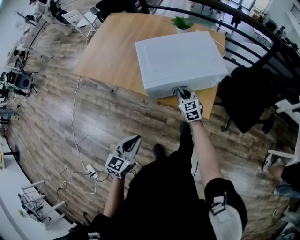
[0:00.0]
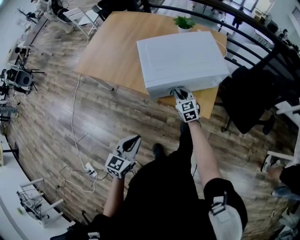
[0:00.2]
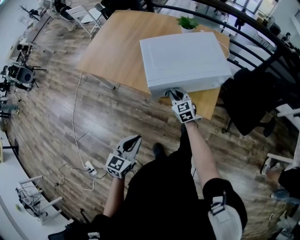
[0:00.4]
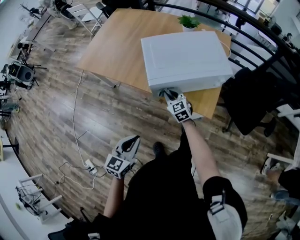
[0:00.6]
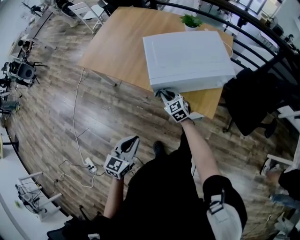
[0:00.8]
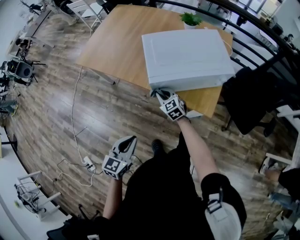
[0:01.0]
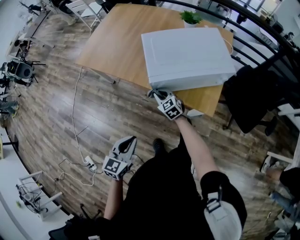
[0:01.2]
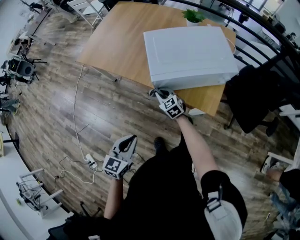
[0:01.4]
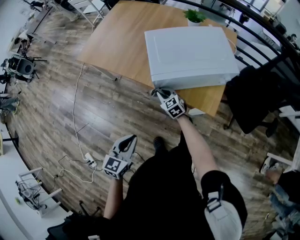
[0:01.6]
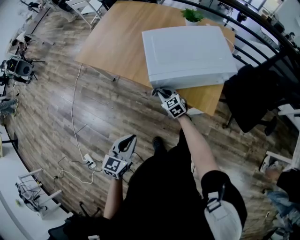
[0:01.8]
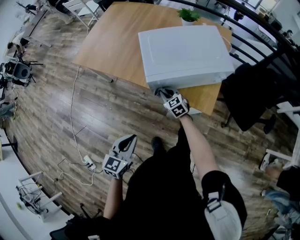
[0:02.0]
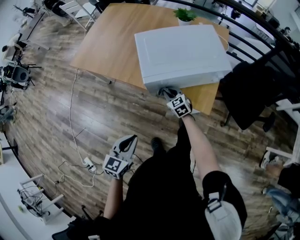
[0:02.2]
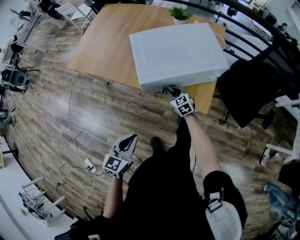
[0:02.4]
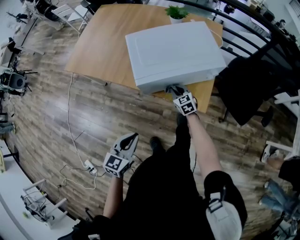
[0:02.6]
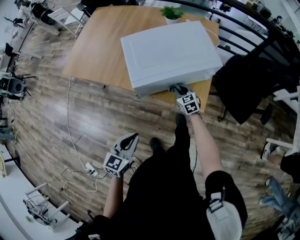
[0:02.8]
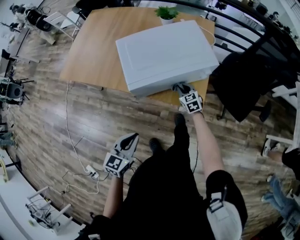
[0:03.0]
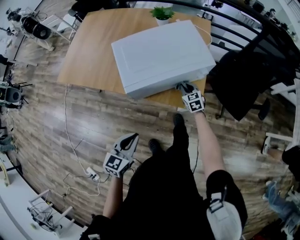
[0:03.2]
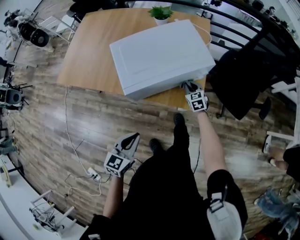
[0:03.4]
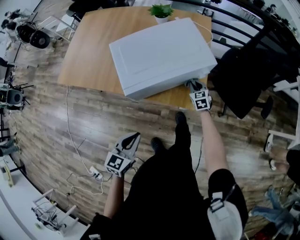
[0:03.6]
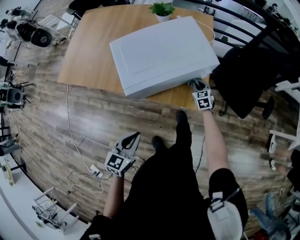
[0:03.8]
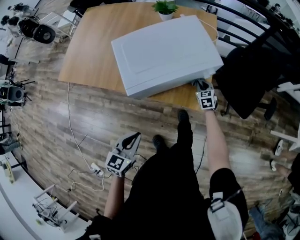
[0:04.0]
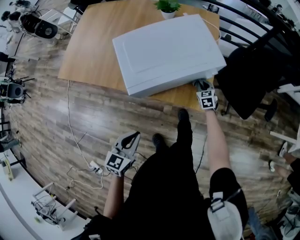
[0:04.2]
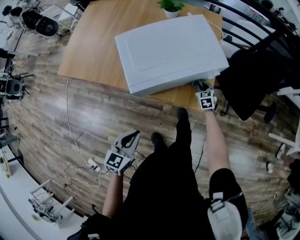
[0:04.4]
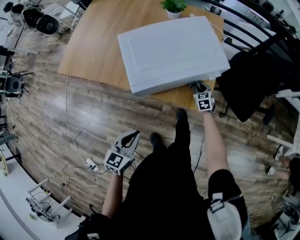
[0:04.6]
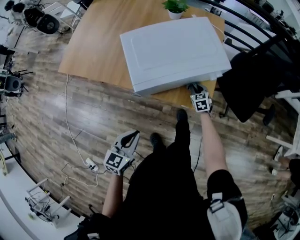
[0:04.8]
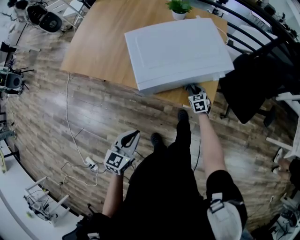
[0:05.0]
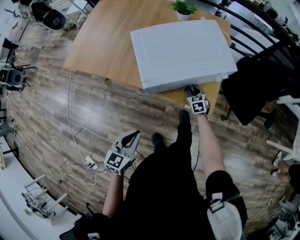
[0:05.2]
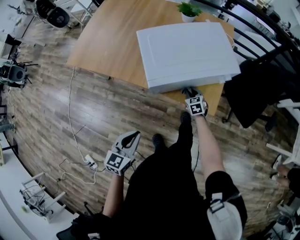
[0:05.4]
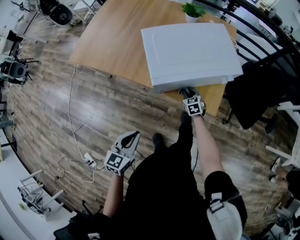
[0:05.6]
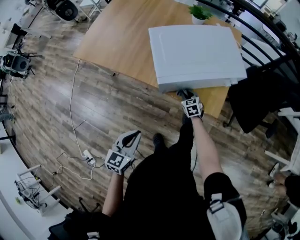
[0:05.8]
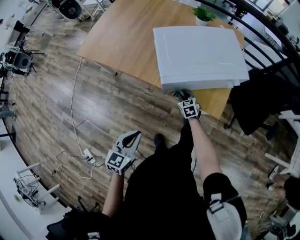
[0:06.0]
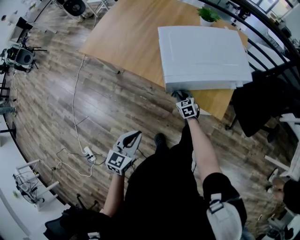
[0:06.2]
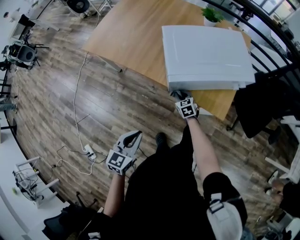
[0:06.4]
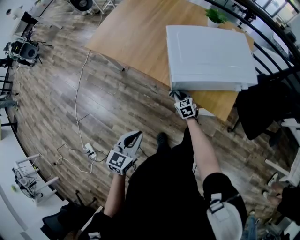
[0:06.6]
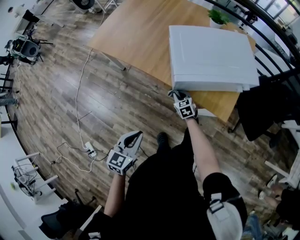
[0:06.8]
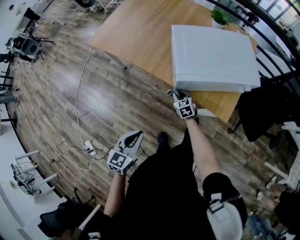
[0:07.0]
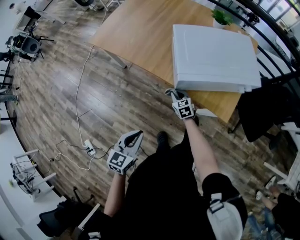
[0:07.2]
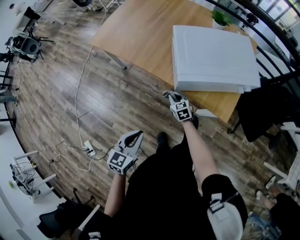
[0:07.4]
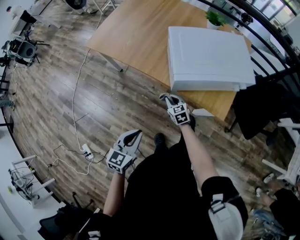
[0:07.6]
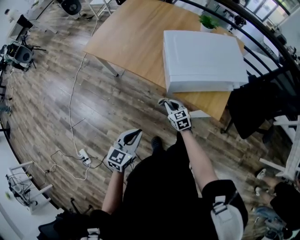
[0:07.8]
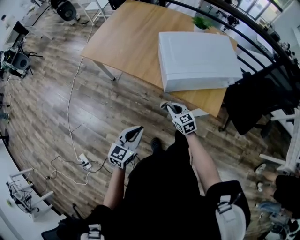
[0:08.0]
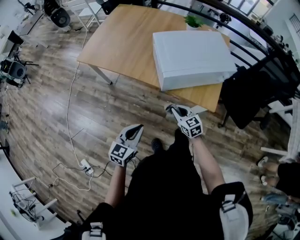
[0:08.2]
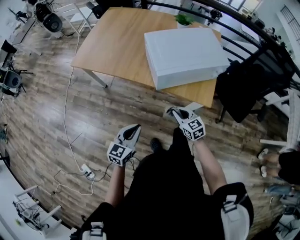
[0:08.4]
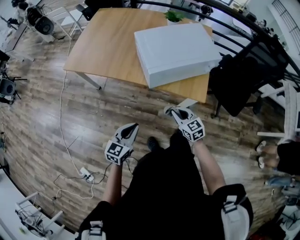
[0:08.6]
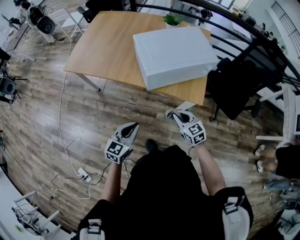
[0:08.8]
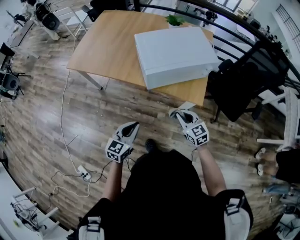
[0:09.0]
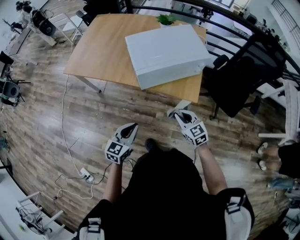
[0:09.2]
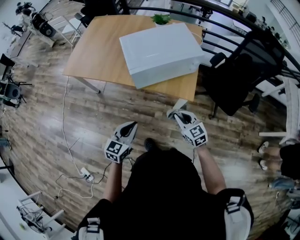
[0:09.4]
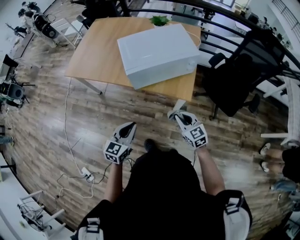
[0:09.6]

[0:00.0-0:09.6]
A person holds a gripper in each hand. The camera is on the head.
0:00.0 to 0:01.6: The right gripper is displaced to the left by roughly 15 cm, and swivels about 20 degrees.
0:01.6 to 0:03.2: The right gripper moves to the right, some 25 cm, and changes its angle by roughly 30 degrees, while the left gripper is displaced to the right and forward by approximately 10 cm.
0:03.2 to 0:04.8: The right gripper shifts approximately 5 cm downward, and moves approximately 10 cm to the right and comes back.
0:04.8 to 0:06.4: The right gripper heads to the left, covering some 25 cm. The left gripper heads to the left and backward, covering roughly 10 cm.
0:06.4 to 0:08.0: The right gripper shifts some 15 cm upward and backward.
0:08.0 to 0:09.6: The left gripper goes about 15 cm to the right; the right gripper heads to the right, backward and upward, covering approximately 30 cm.

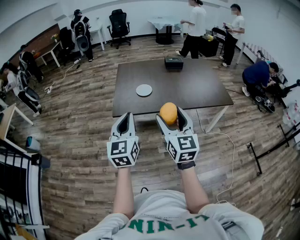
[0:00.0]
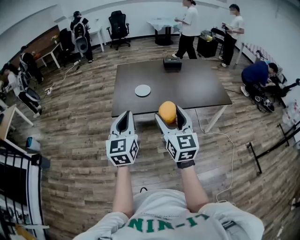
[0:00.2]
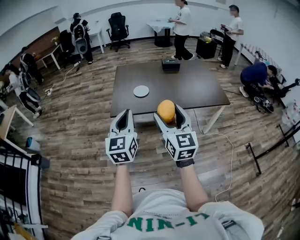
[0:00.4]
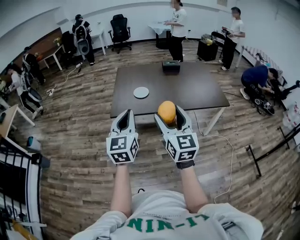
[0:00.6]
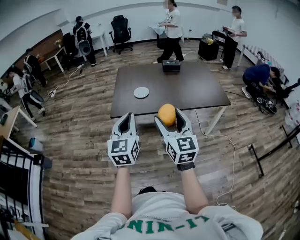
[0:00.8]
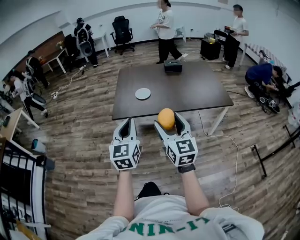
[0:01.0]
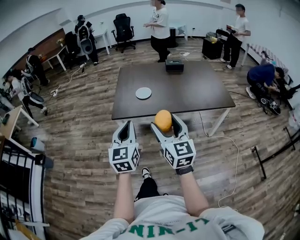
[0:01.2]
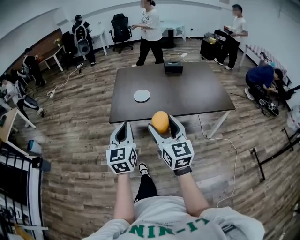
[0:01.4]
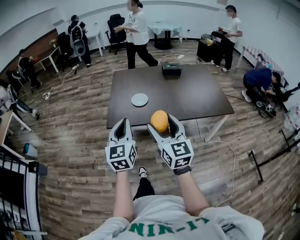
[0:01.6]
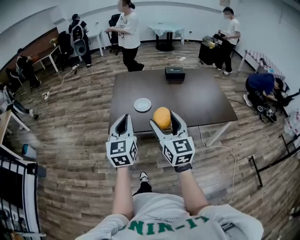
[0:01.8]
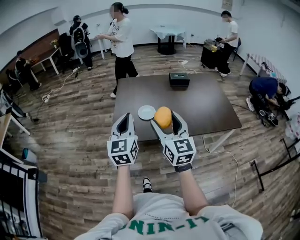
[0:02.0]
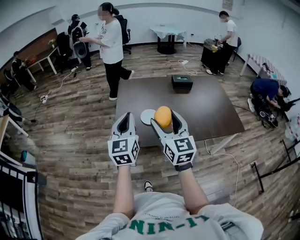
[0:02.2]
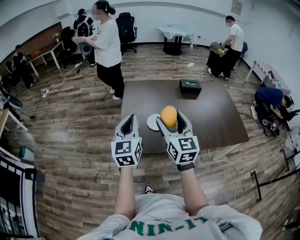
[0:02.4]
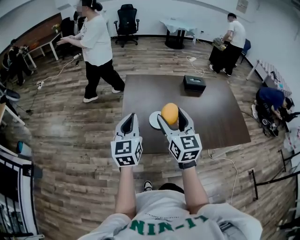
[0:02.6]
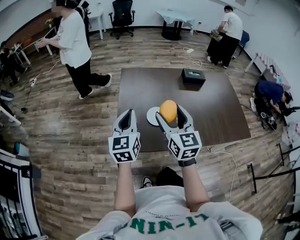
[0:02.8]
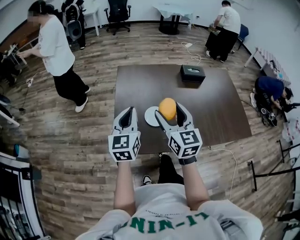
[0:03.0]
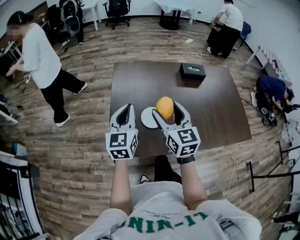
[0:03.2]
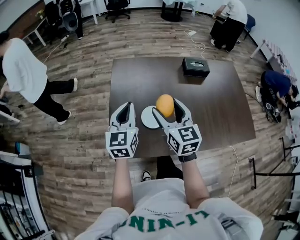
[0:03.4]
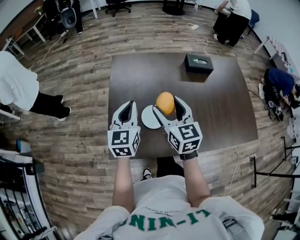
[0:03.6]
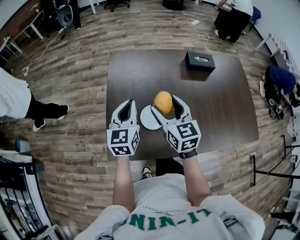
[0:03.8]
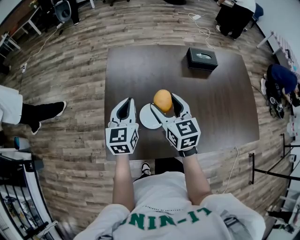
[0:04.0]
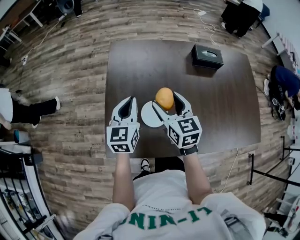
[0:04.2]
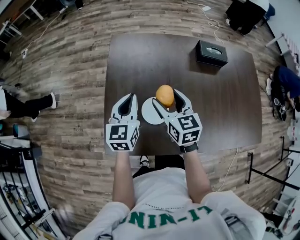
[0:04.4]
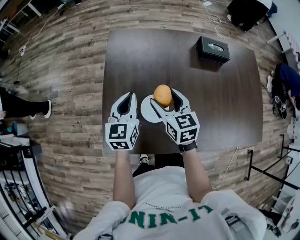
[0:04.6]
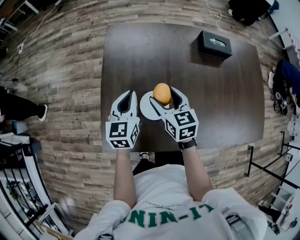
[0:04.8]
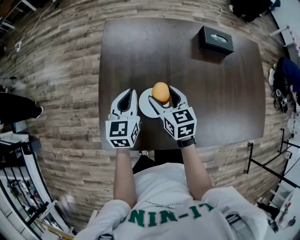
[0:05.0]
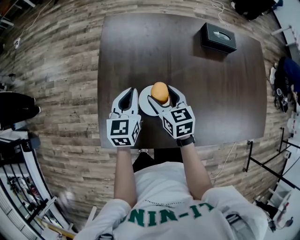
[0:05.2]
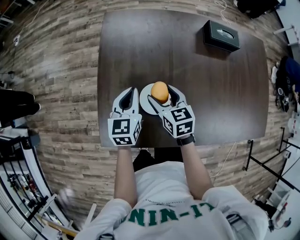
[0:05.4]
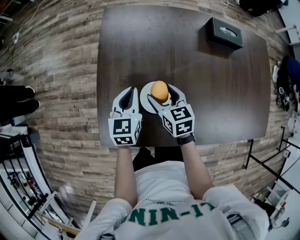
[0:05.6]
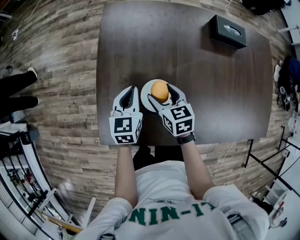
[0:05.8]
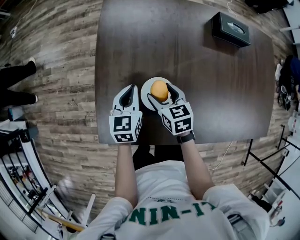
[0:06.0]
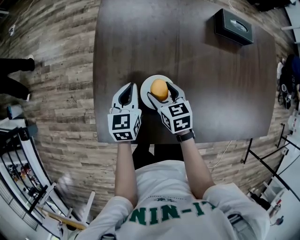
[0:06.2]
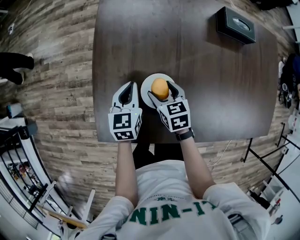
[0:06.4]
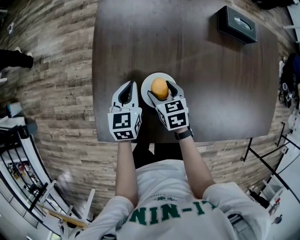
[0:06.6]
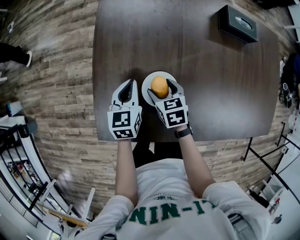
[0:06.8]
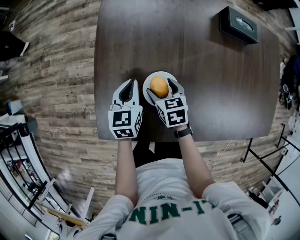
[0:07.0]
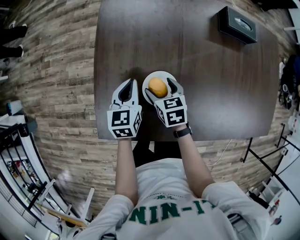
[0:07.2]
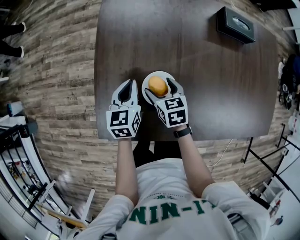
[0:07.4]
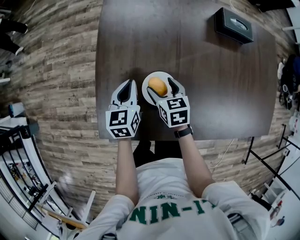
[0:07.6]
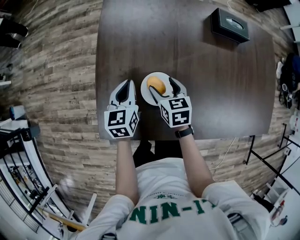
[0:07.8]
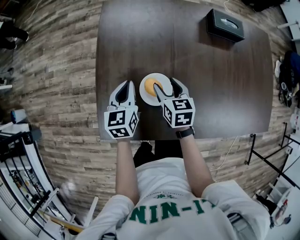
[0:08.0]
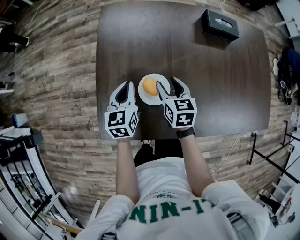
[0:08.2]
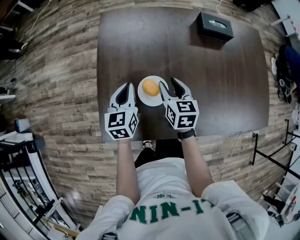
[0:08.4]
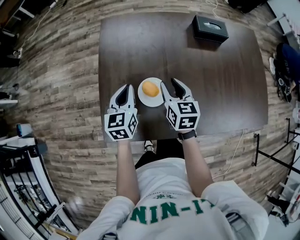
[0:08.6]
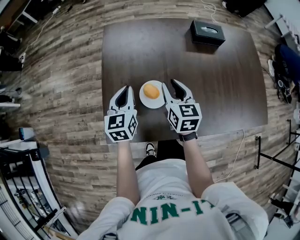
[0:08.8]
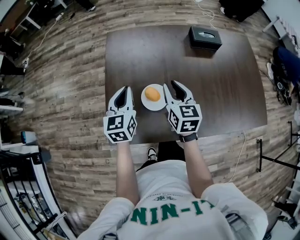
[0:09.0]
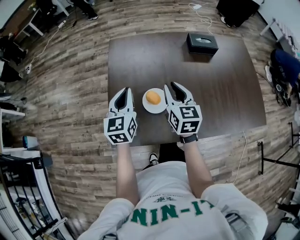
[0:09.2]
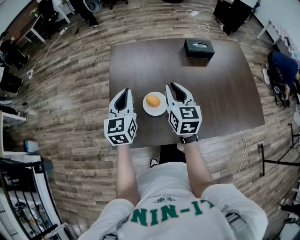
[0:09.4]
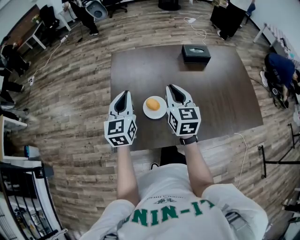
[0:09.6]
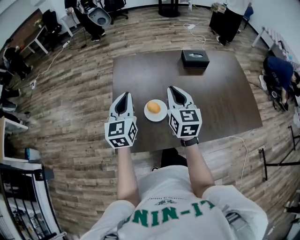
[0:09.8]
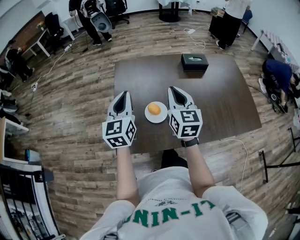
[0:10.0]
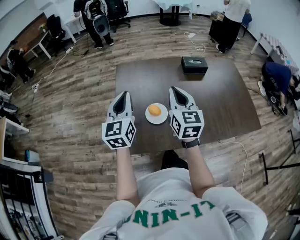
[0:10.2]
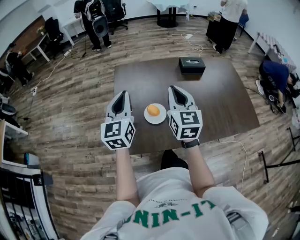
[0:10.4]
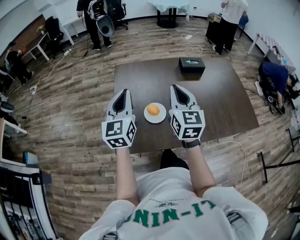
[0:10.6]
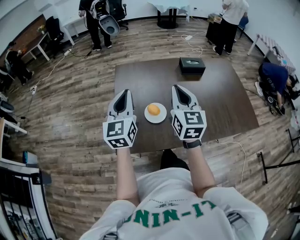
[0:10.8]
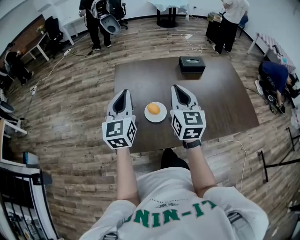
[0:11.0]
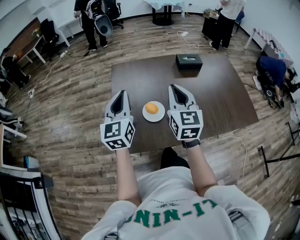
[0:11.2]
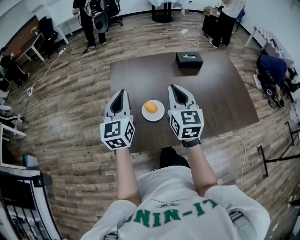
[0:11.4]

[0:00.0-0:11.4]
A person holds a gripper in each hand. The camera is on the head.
0:00.0 to 0:01.4: The left gripper shifts by about 5 cm.
0:01.4 to 0:02.8: The pair of grippers is taken forward, some 40 cm.
0:02.8 to 0:04.2: The left gripper moves forward, downward and to the right, about 30 cm. Meanwhile the right gripper is displaced forward and downward by approximately 30 cm, and swivels approximately 20 degrees.
0:04.2 to 0:05.6: Both grippers move downward, approximately 15 cm.
0:05.6 to 0:07.2: Both grippers travel together downward, about 10 cm.
0:07.2 to 0:08.6: The right gripper heads upward and to the right, covering about 20 cm, changes its angle by approximately 30 degrees, and closes up. Meanwhile the left gripper goes some 10 cm upward.
0:08.6 to 0:10.0: Both grippers travel together upward and backward, approximately 25 cm. The left gripper swivels roughly 20 degrees. Meanwhile the right gripper turns by about 20 degrees, and closes up.
0:10.0 to 0:11.4: The grippers stay close to where they were, moving slightly.

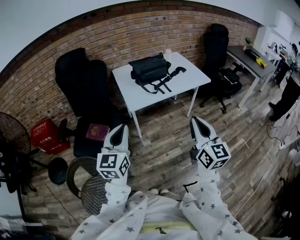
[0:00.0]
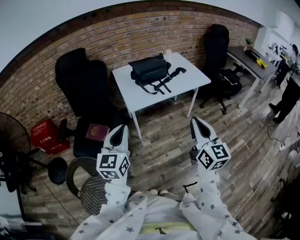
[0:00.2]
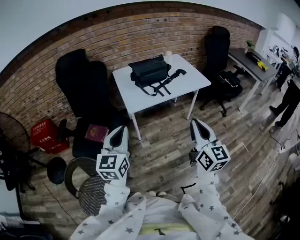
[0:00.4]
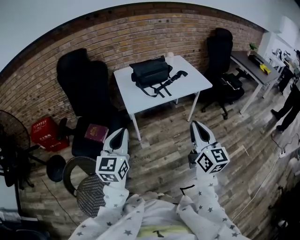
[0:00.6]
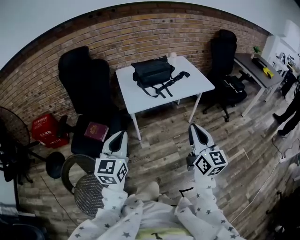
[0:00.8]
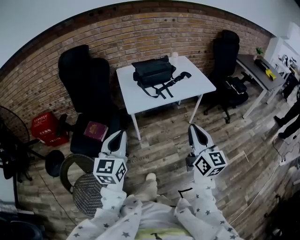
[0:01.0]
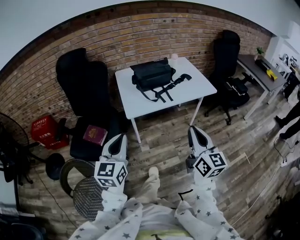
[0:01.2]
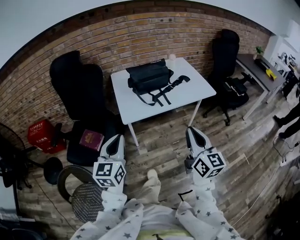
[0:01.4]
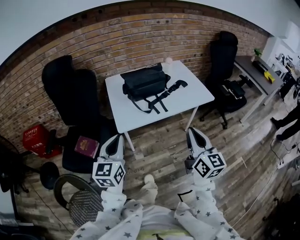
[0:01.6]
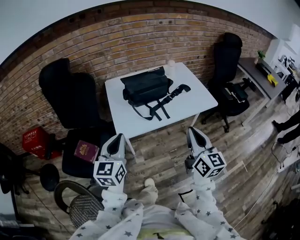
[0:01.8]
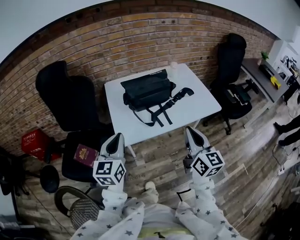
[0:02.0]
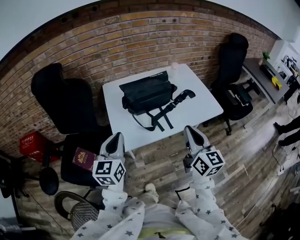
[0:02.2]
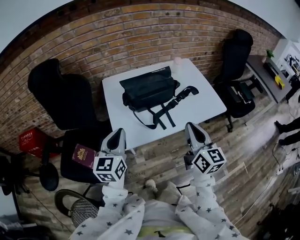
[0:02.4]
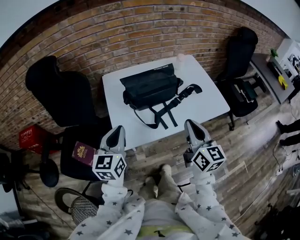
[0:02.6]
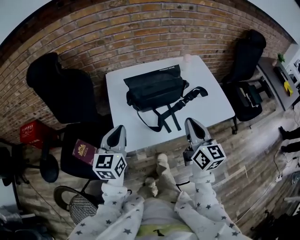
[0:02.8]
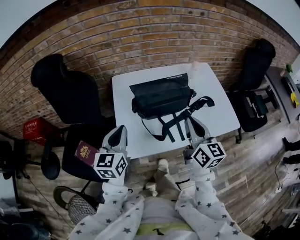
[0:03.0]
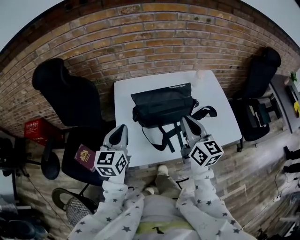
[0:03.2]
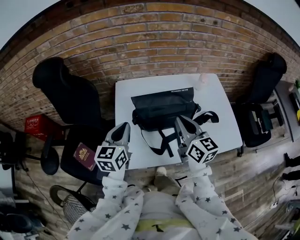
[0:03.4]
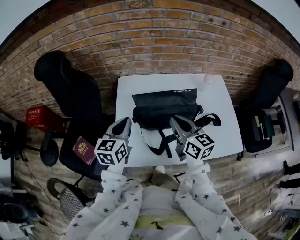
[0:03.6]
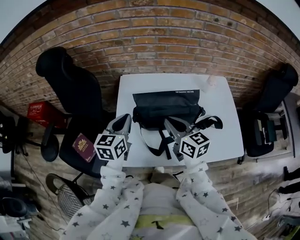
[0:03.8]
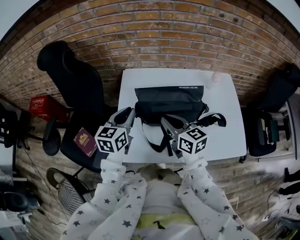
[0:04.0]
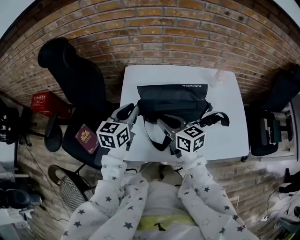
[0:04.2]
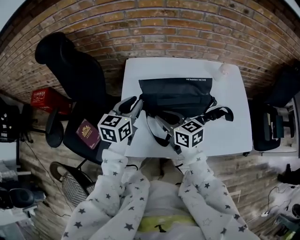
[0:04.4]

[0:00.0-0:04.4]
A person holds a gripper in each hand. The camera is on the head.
0:00.0 to 0:01.4: Both grippers travel together forward, some 10 cm.
0:01.4 to 0:03.0: Both grippers travel together forward, approximately 35 cm.
0:03.0 to 0:04.4: The left gripper travels forward and to the right by some 15 cm, and opens, while the right gripper is displaced downward, forward and to the left by about 20 cm, rotates roughly 40 degrees, and opens.
